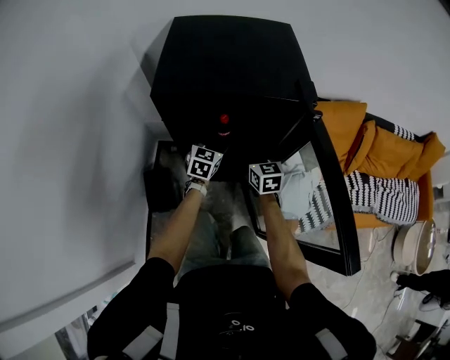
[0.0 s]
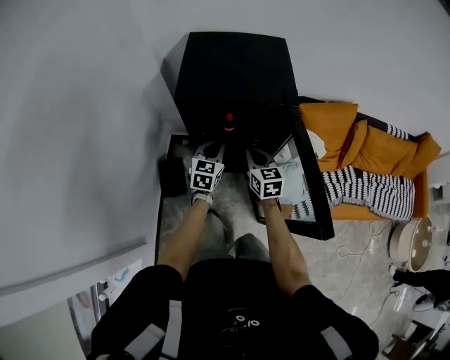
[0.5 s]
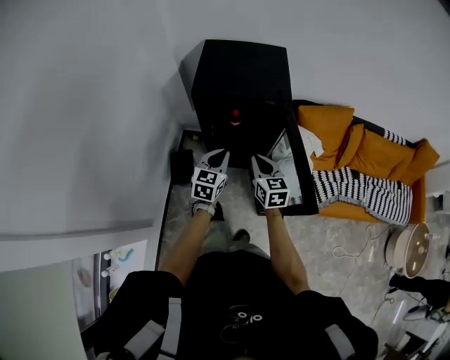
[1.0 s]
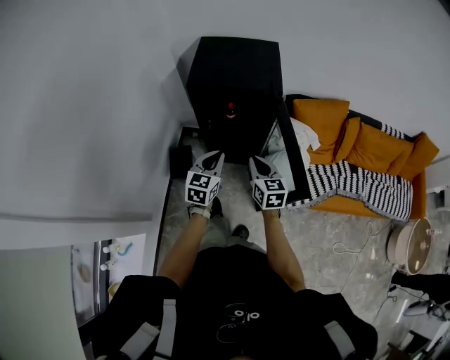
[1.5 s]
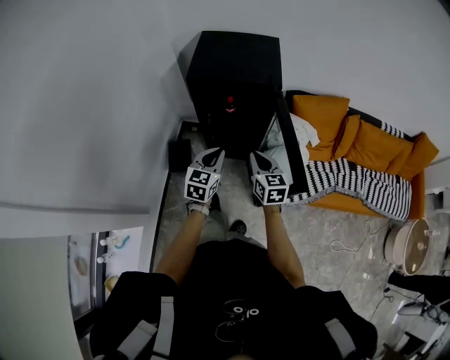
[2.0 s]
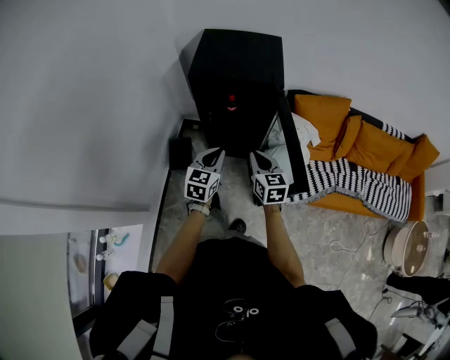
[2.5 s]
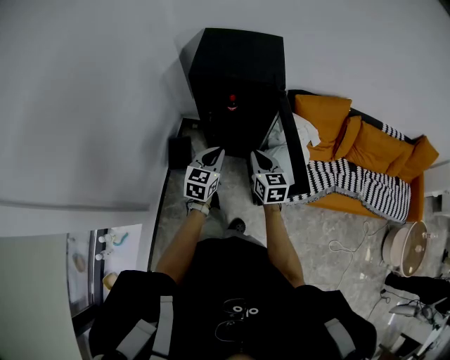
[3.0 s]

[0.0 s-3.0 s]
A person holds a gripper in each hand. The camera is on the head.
0.0 to 1.5 s: Both grippers move backward and upward, roughly 35 cm. The left gripper closes up.
1.5 to 3.0 s: The grippers move only a little.

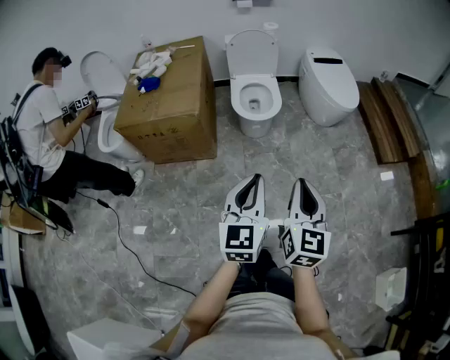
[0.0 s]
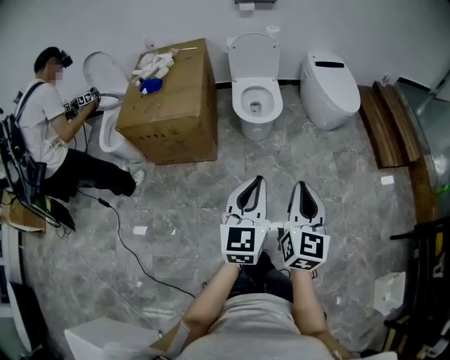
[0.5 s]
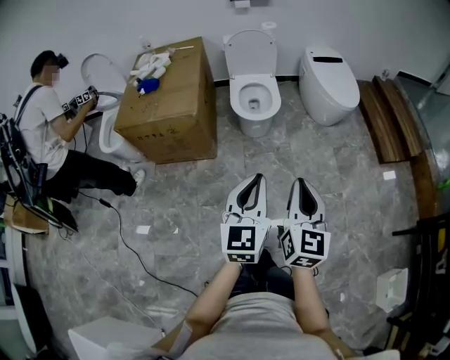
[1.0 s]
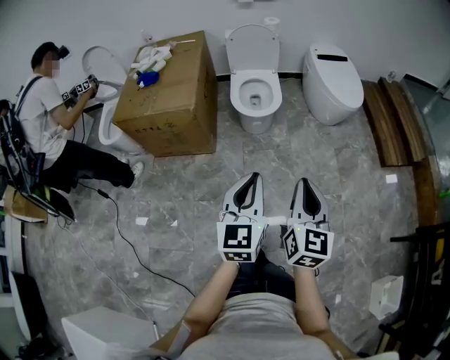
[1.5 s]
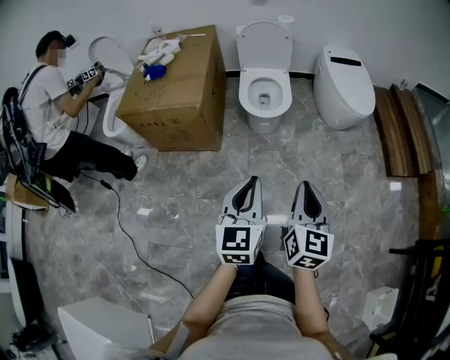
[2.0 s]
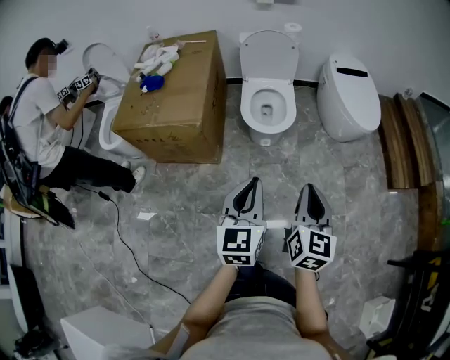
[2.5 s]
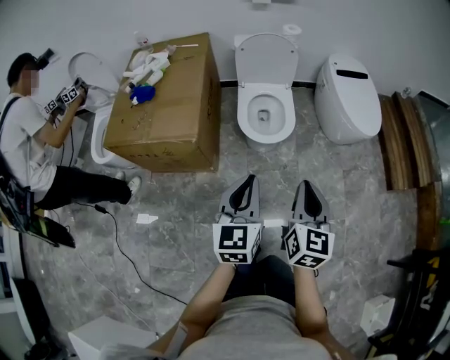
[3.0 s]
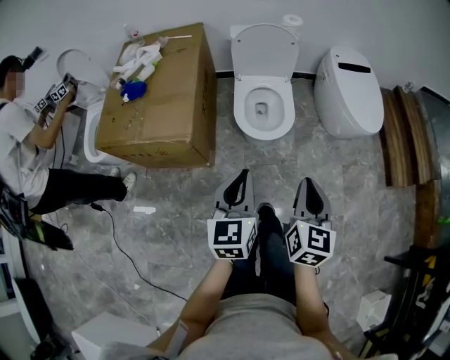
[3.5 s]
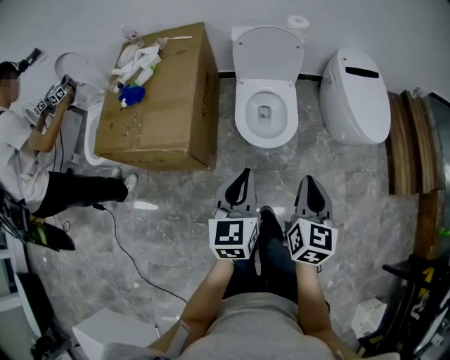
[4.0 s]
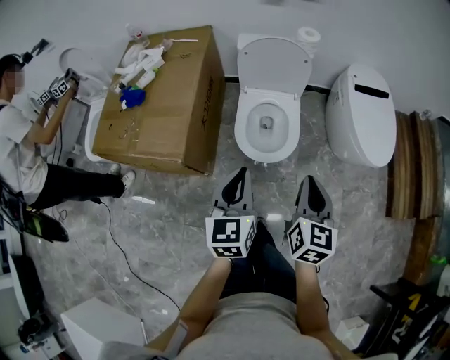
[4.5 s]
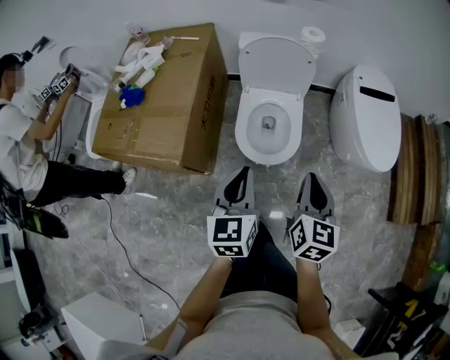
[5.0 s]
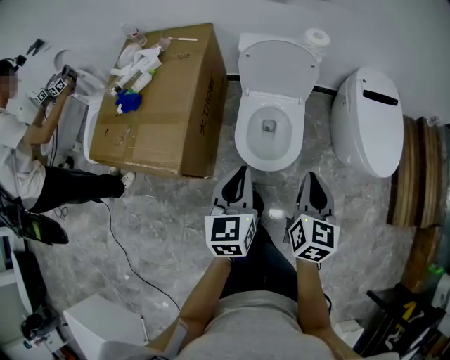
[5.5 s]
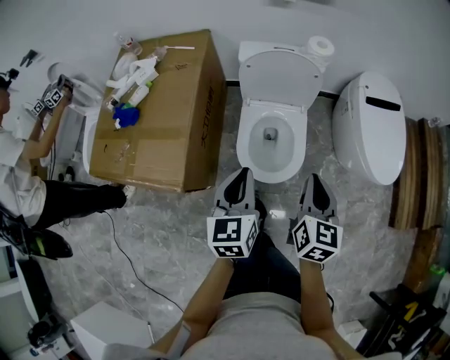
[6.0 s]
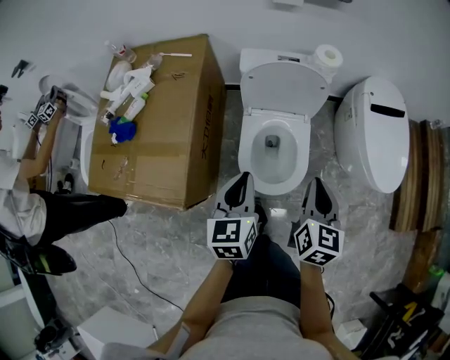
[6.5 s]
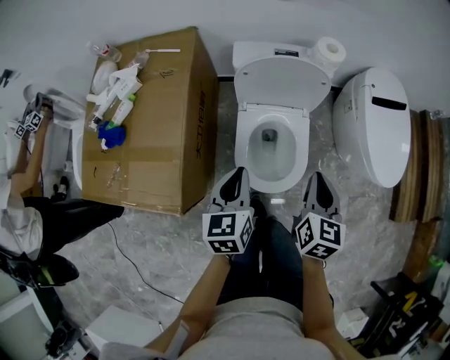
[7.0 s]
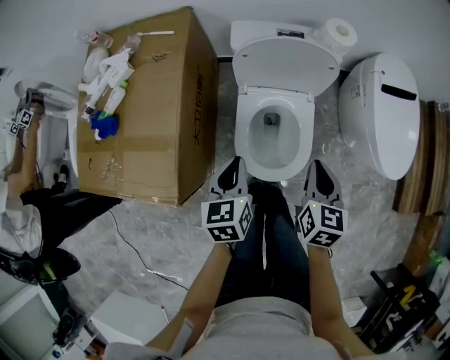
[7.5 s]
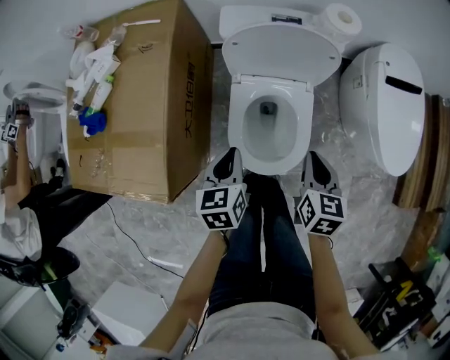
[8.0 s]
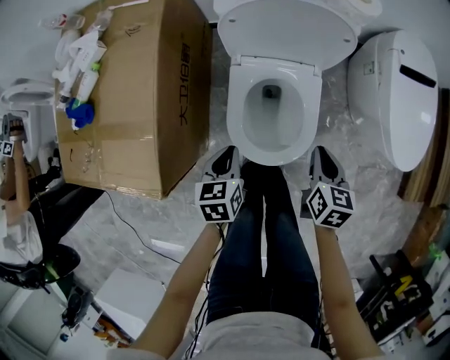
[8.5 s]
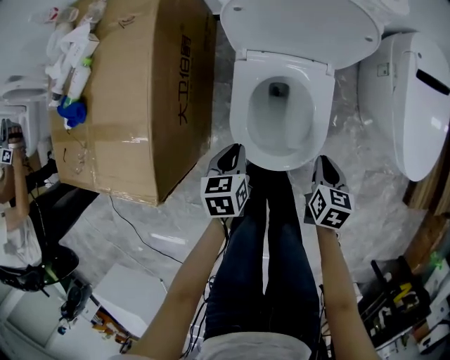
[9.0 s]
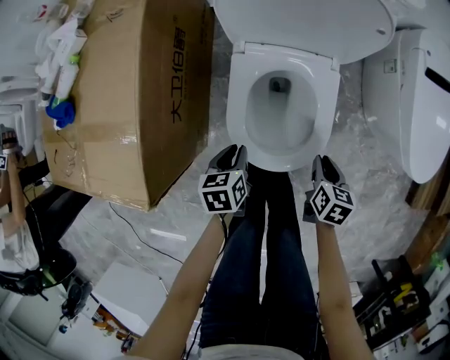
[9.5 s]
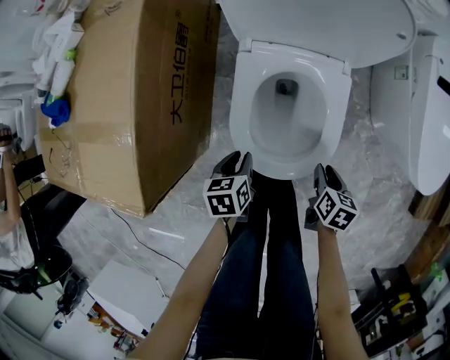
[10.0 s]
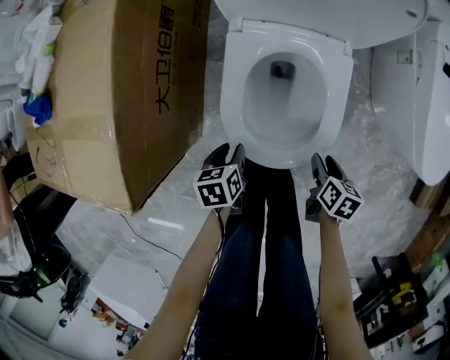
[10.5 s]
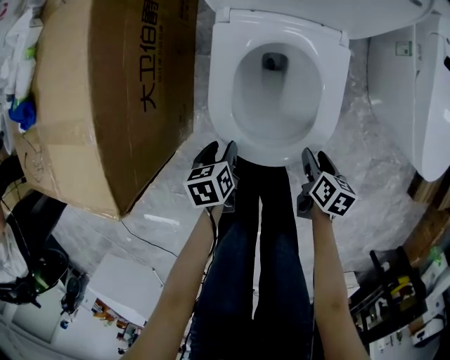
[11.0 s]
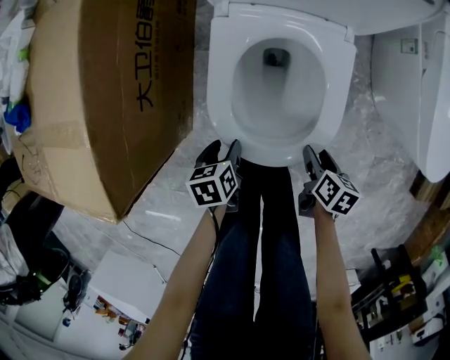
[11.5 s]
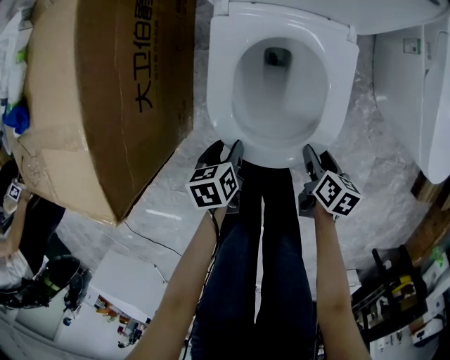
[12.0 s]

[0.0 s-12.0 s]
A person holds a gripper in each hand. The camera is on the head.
0.0 to 2.0 s: The left gripper shifts by roughly 5 cm. The right gripper travels forward and to the right by some 10 cm.
2.0 to 4.0 s: Both grippers move forward, about 35 cm.
4.0 to 6.0 s: Both grippers travel together forward, about 20 cm.
6.0 to 8.0 s: Both grippers move downward and forward, about 20 cm. The left gripper swivels about 20 degrees.
8.0 to 10.0 s: The grippers both shift downward by approximately 30 cm. The right gripper turns by roughly 20 degrees, and opens up. The left gripper swivels about 20 degrees.
10.0 to 12.0 s: Both grippers move downward, roughly 10 cm. The left gripper opens. Meanwhile the right gripper opens its fingers.

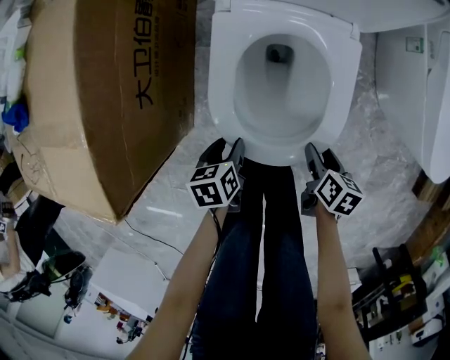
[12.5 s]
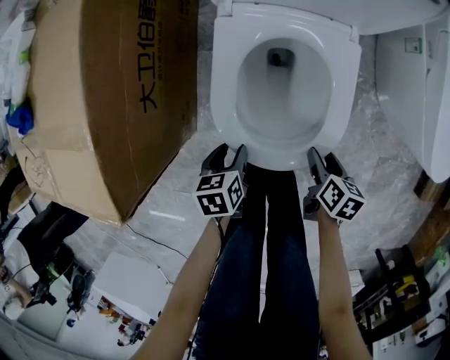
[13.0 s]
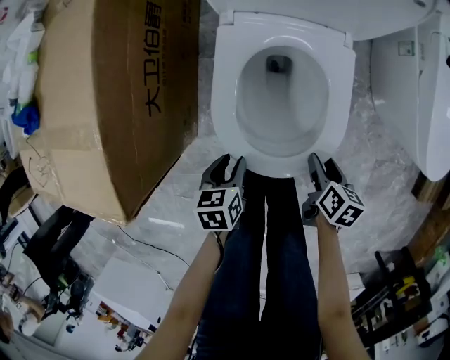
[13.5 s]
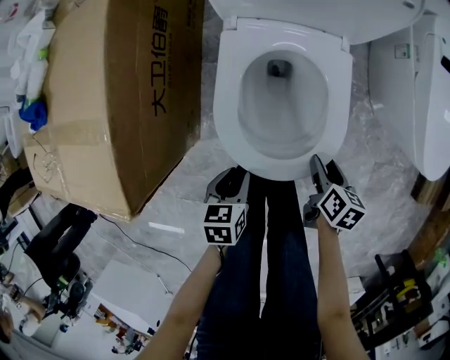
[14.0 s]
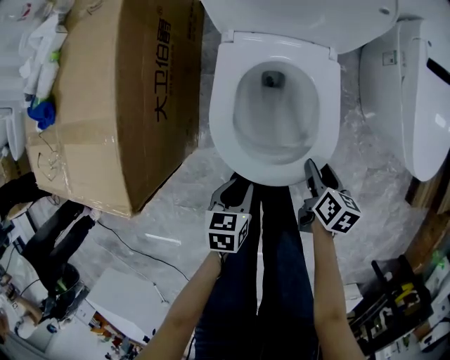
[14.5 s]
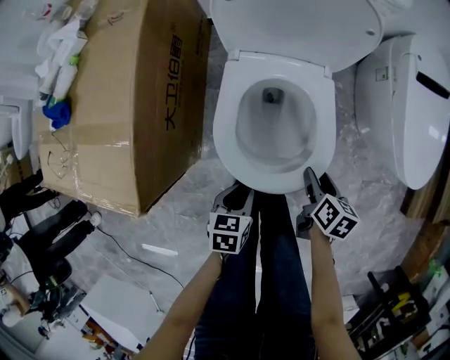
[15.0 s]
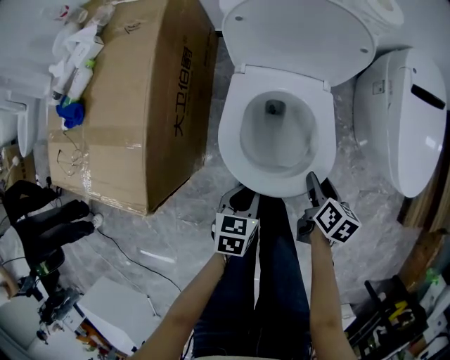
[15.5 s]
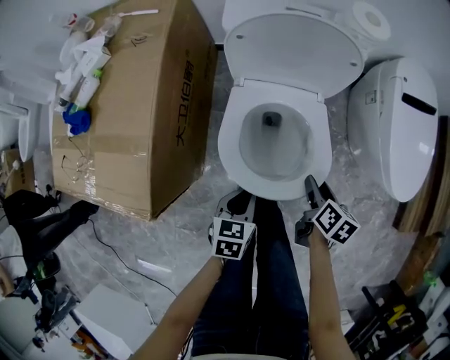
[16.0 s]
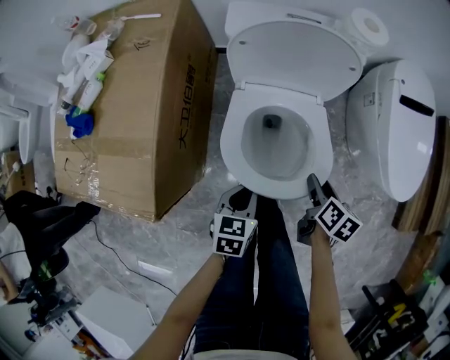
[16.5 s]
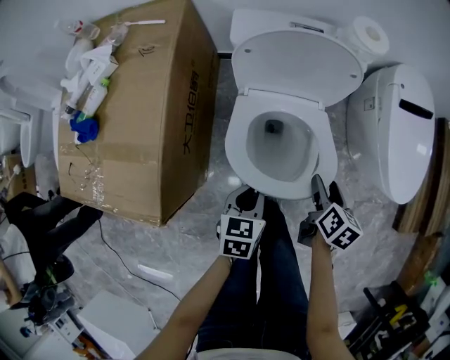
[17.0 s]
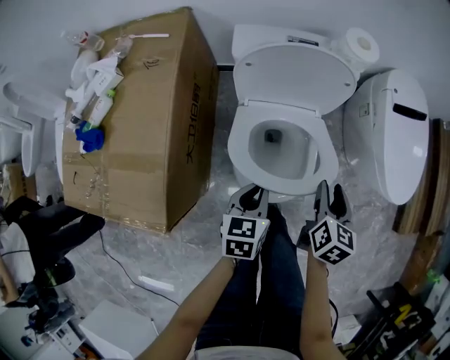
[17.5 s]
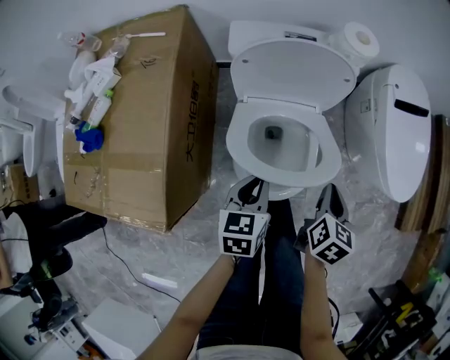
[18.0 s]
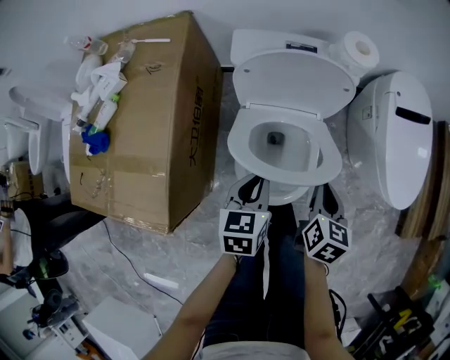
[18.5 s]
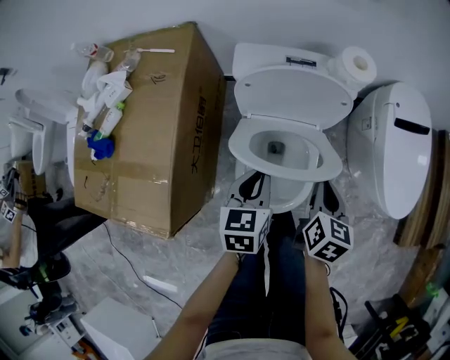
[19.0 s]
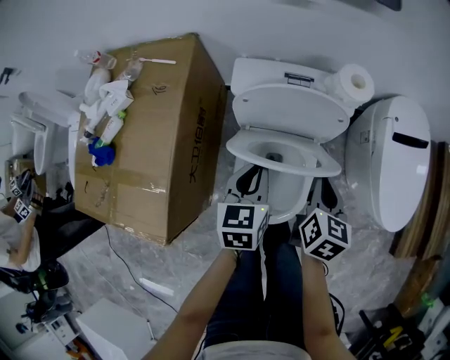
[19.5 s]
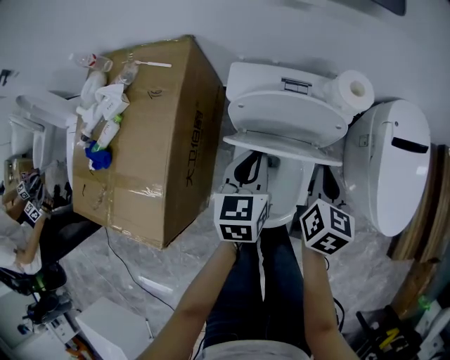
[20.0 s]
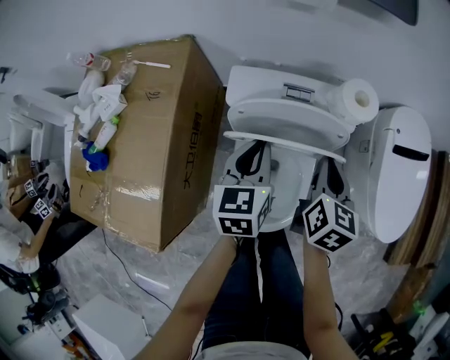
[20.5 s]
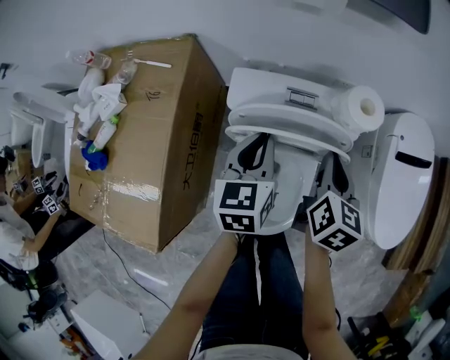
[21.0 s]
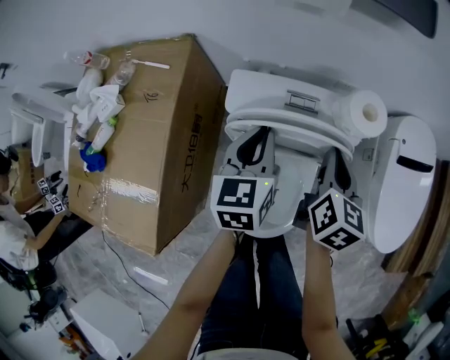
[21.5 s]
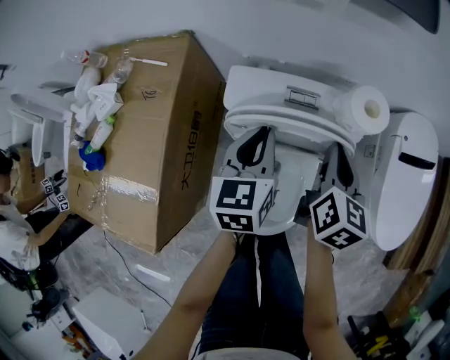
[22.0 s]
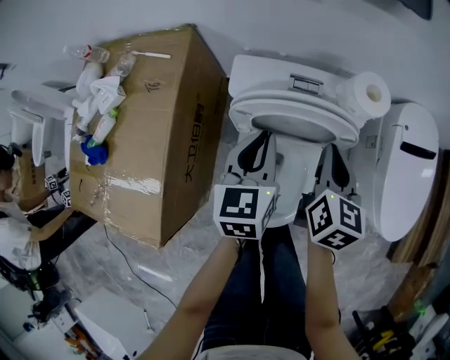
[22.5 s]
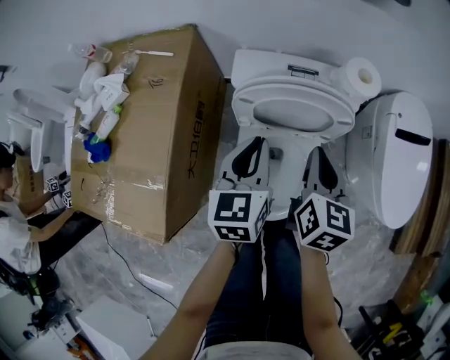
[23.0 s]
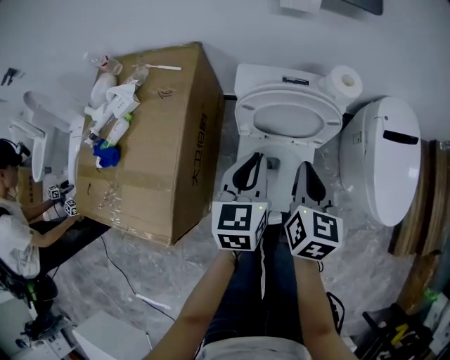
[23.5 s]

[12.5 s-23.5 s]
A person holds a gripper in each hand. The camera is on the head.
12.5 to 14.5 s: The right gripper moves upward, roughly 10 cm. The left gripper moves upward and backward, approximately 10 cm.
14.5 to 16.0 s: The right gripper is displaced upward by approximately 10 cm; the left gripper goes about 10 cm upward and forward.
16.0 to 18.0 s: The left gripper moves upward and forward, approximately 15 cm. The right gripper heads upward, covering roughly 10 cm, turns by about 30 degrees, and closes up.
18.0 to 20.0 s: The grippers both shift forward and upward by roughly 20 cm.
20.0 to 21.5 s: The two grippers go roughly 10 cm forward.
21.5 to 23.5 s: The right gripper moves backward and to the left, some 20 cm. The left gripper moves backward, some 15 cm.

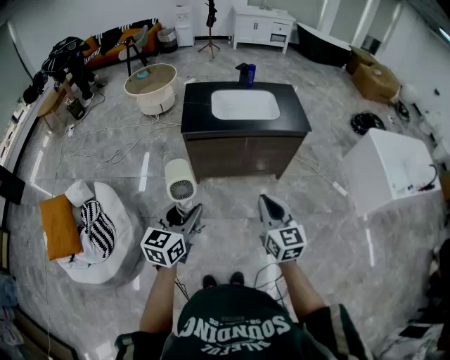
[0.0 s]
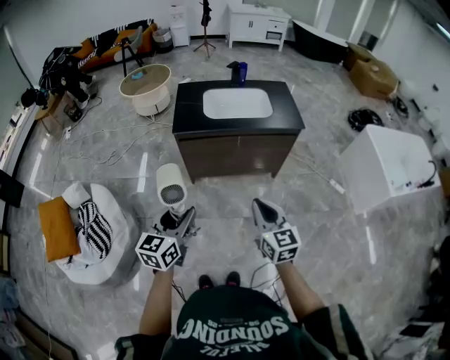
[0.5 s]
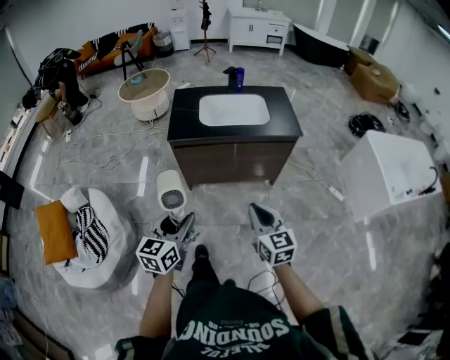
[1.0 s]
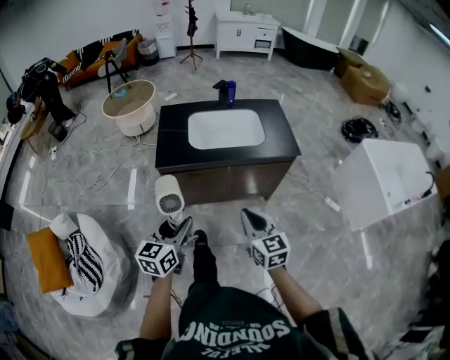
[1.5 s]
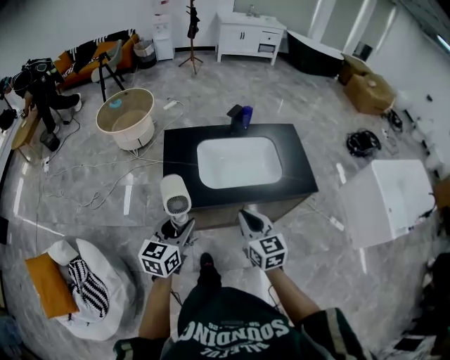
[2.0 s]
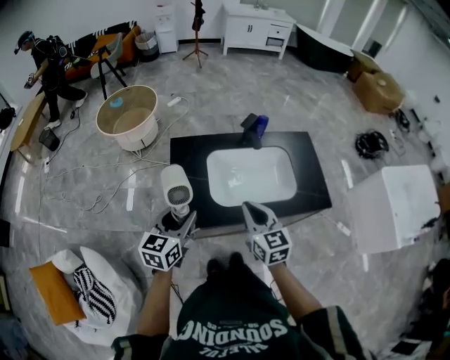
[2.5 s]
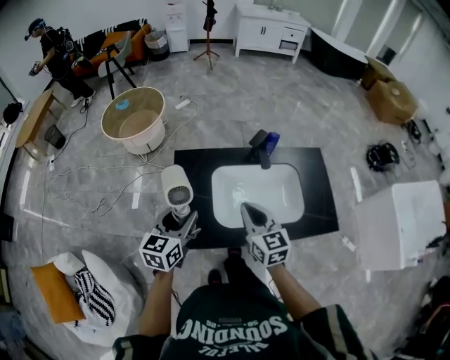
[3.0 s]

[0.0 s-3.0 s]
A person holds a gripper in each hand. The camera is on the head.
0.0 to 1.5 s: The two grippers go roughly 20 cm forward.
1.5 to 3.0 s: The two grippers travel together, forward, approximately 50 cm.
